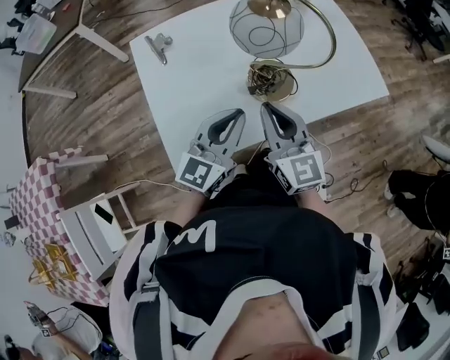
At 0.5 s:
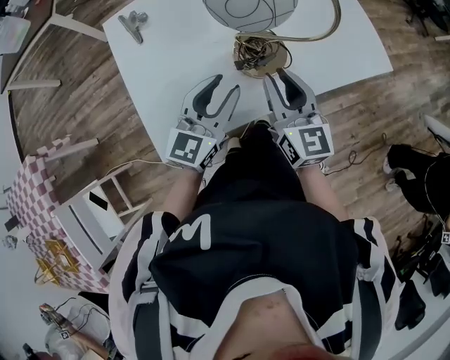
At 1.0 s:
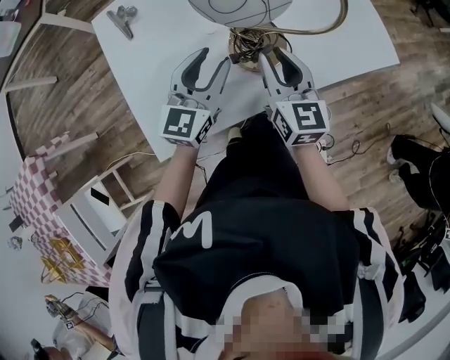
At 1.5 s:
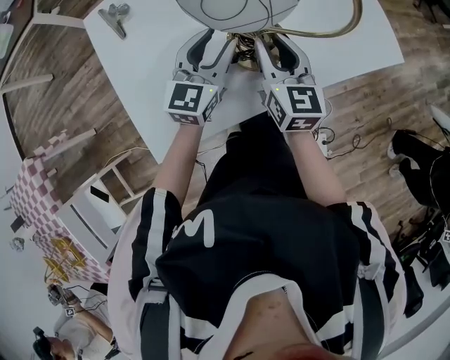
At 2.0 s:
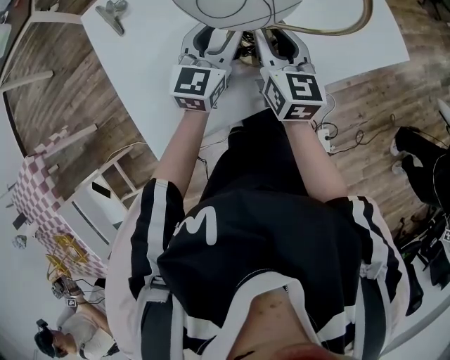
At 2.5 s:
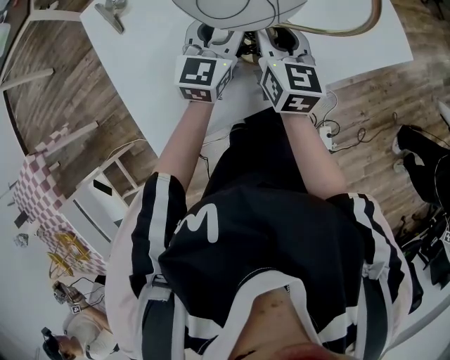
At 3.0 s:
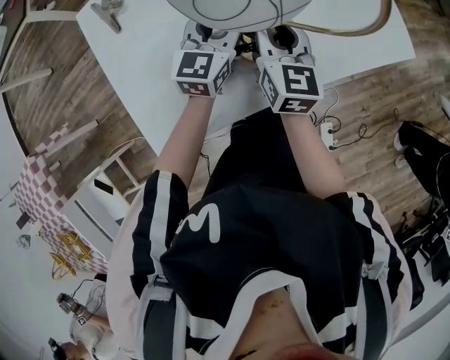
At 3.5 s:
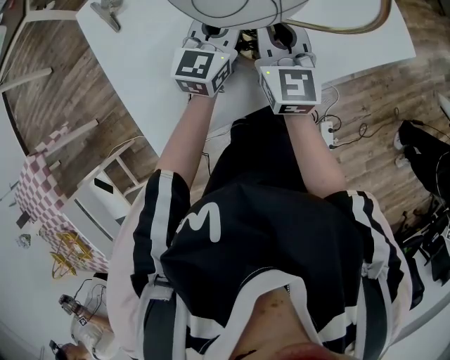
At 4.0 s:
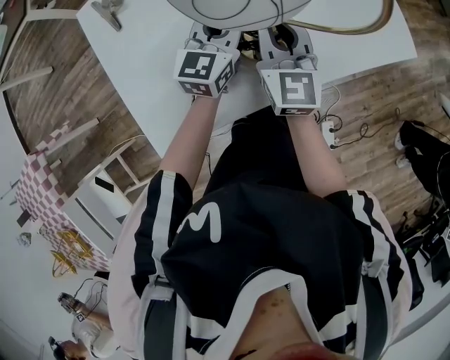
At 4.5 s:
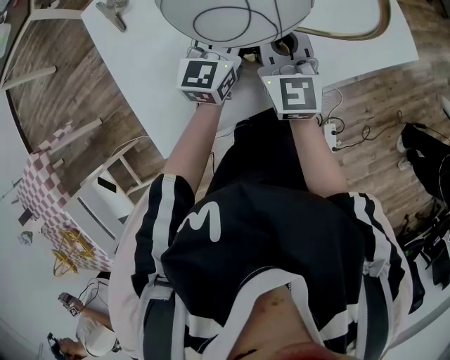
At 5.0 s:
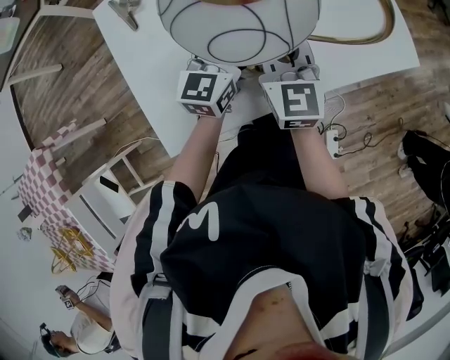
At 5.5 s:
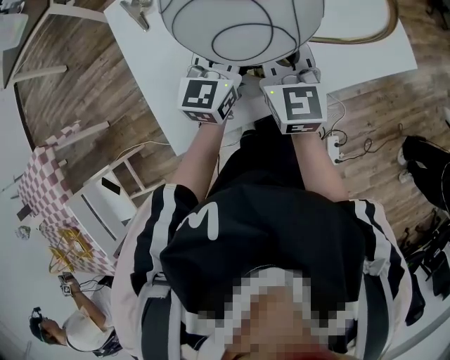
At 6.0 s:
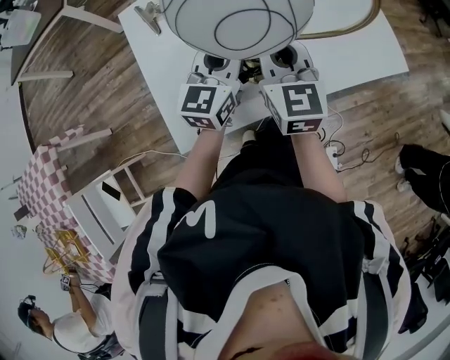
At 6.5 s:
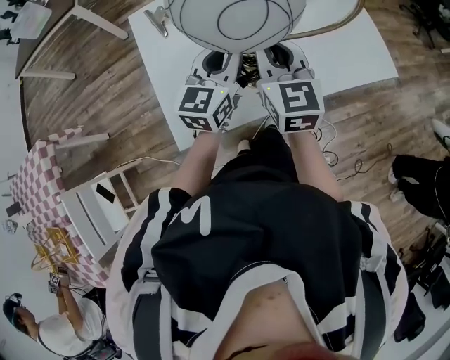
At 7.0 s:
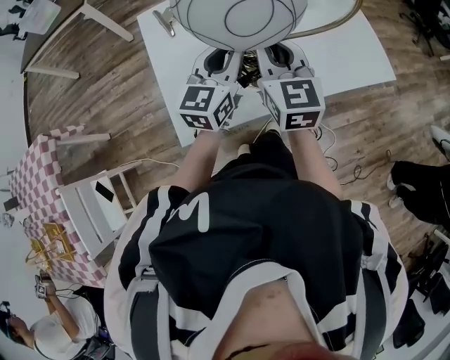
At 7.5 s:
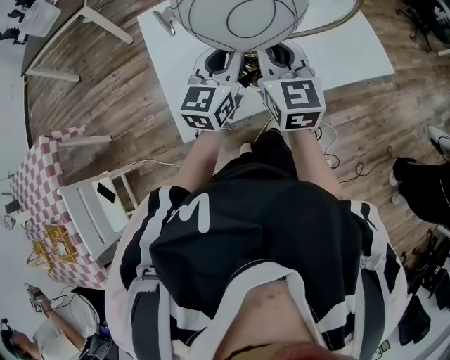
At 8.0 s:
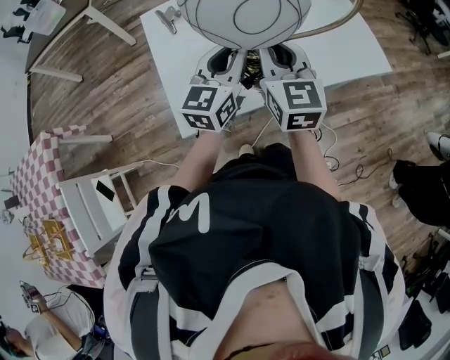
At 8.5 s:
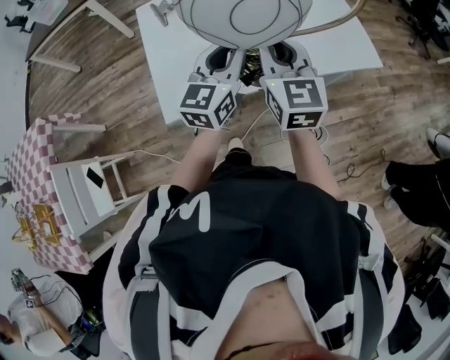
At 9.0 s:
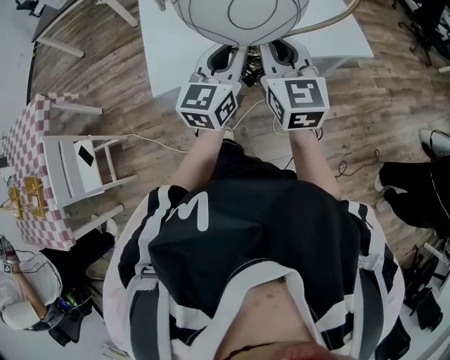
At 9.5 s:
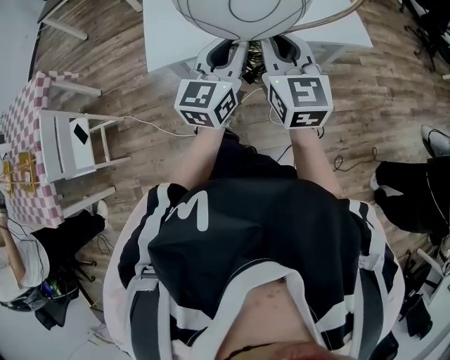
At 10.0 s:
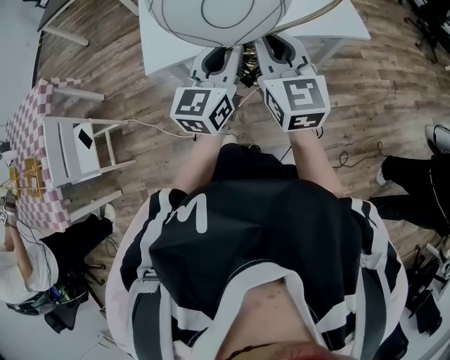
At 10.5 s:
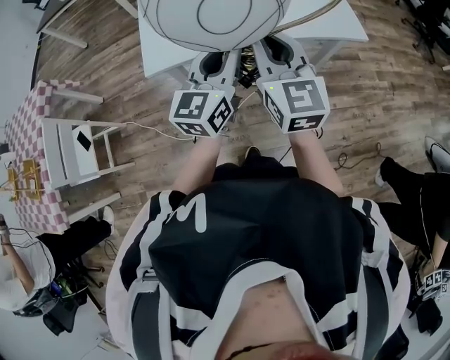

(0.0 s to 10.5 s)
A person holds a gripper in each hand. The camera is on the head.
0.0 s - 2.0 s: The two grippers go some 20 cm forward and downward. The right gripper swivels roughly 20 degrees, while the left gripper opens up.
2.0 s - 4.0 s: The left gripper closes its fingers.
4.0 s - 6.5 s: Both grippers move upward, backward and to the left, about 15 cm.
6.5 s - 8.5 s: The grippers both shift backward by roughly 10 cm.
8.5 s - 10.5 s: Both grippers move backward and to the right, approximately 15 cm.

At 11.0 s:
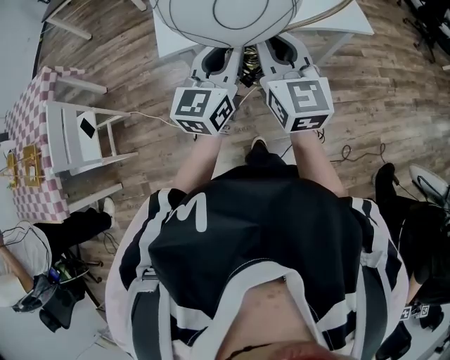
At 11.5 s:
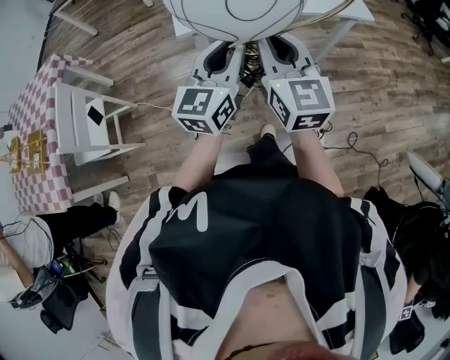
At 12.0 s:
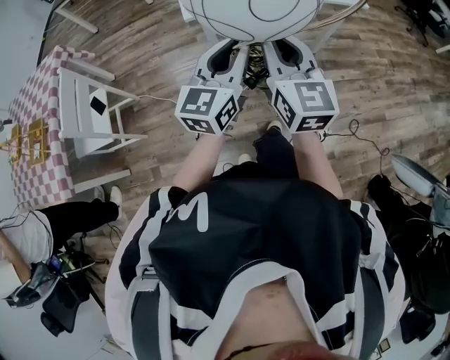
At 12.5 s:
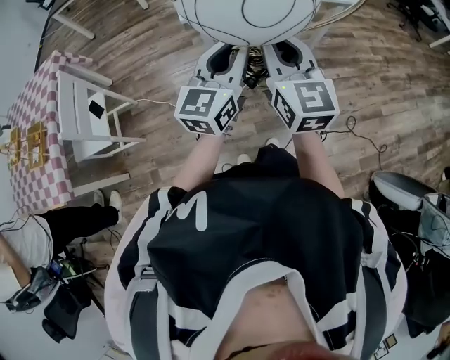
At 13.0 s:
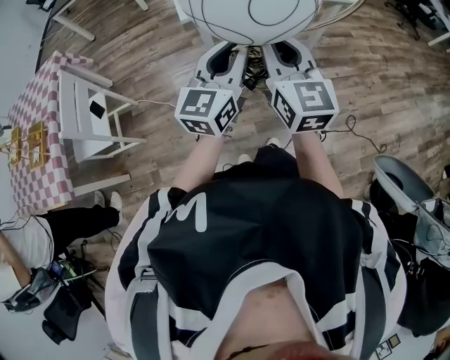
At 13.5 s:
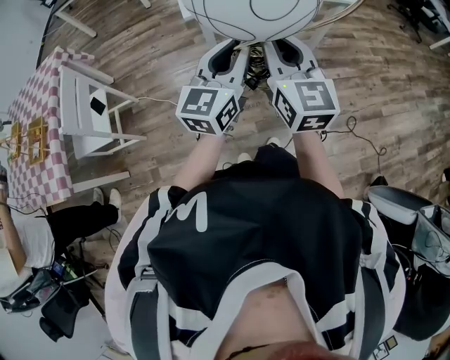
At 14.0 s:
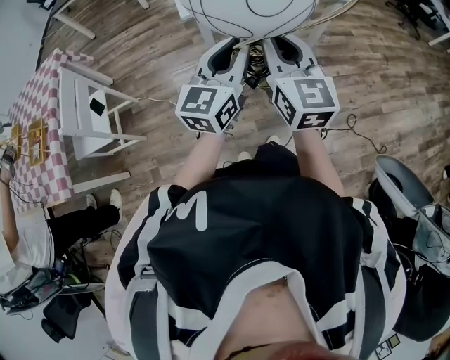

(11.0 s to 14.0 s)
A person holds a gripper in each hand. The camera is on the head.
11.0 s - 12.5 s: Both grippers move backward, some 20 cm.
12.5 s - 14.0 s: The grippers make only small movements.

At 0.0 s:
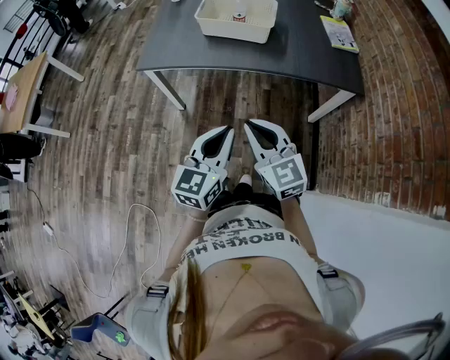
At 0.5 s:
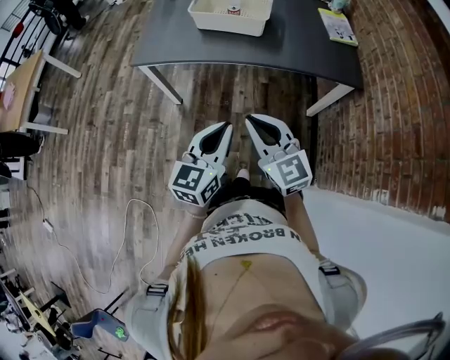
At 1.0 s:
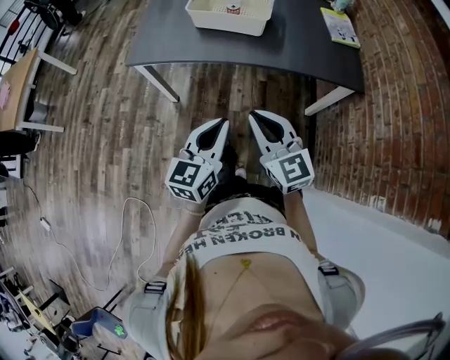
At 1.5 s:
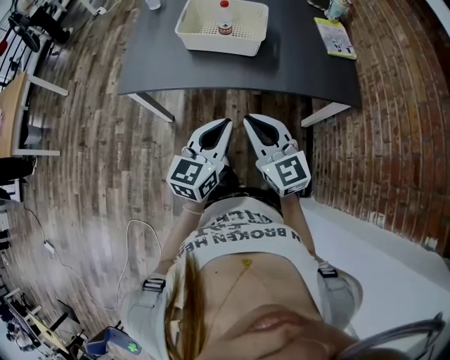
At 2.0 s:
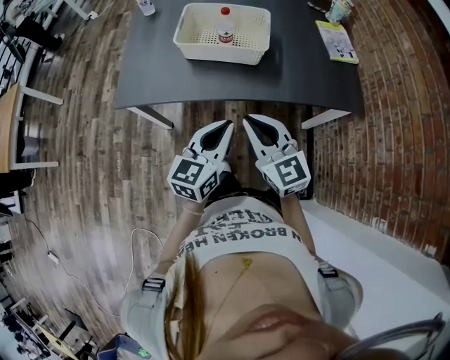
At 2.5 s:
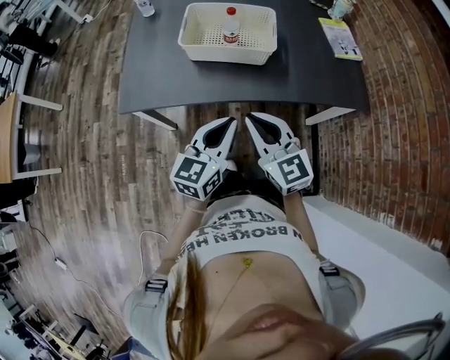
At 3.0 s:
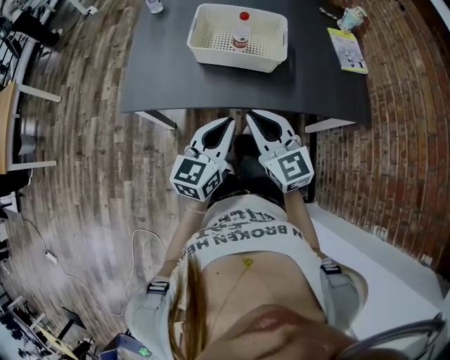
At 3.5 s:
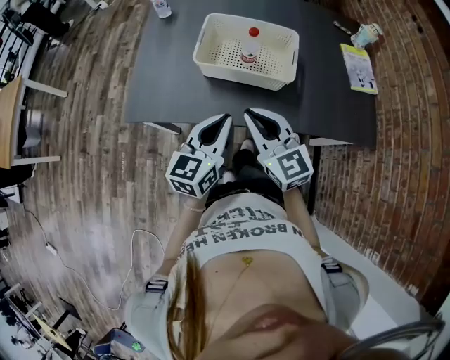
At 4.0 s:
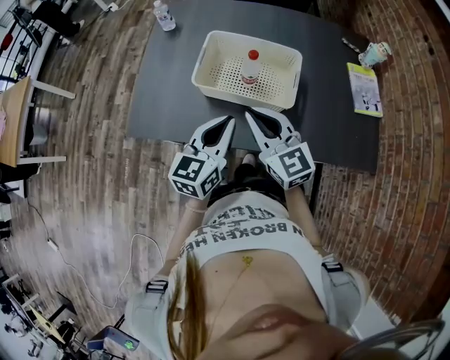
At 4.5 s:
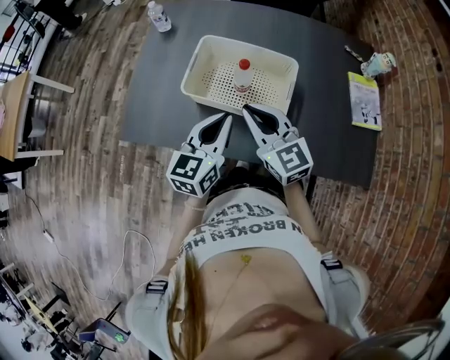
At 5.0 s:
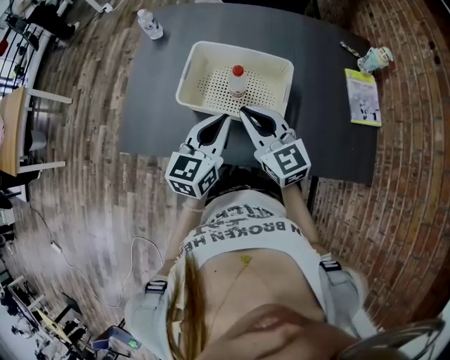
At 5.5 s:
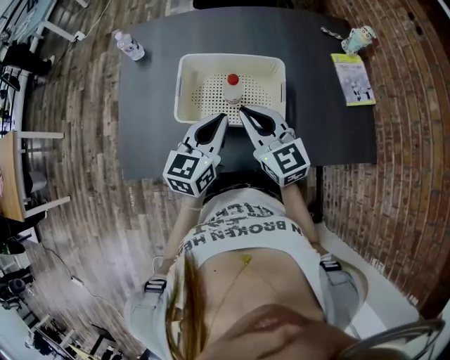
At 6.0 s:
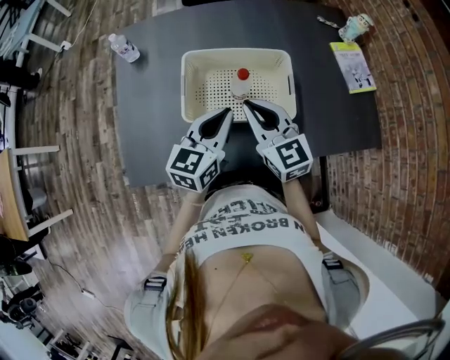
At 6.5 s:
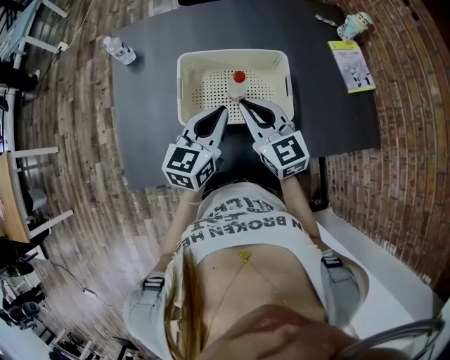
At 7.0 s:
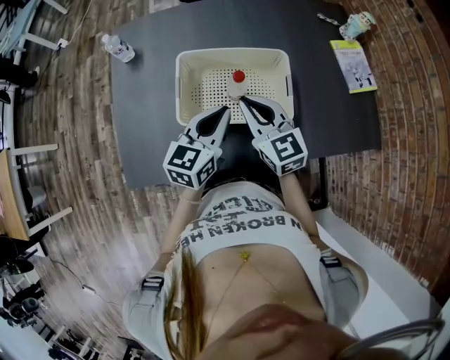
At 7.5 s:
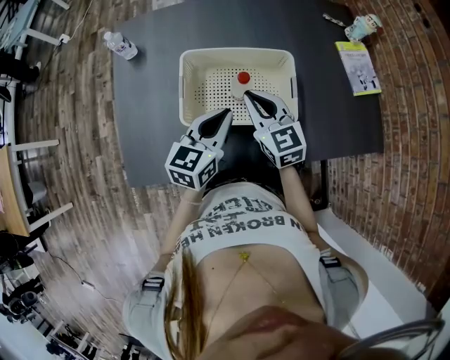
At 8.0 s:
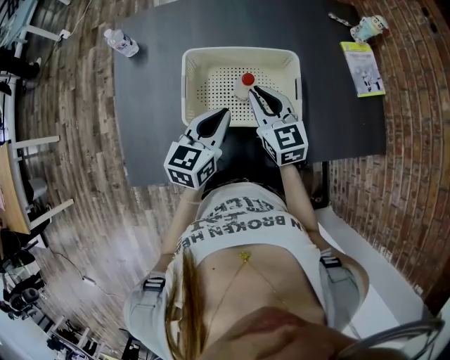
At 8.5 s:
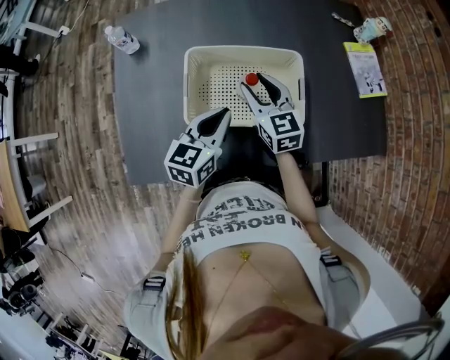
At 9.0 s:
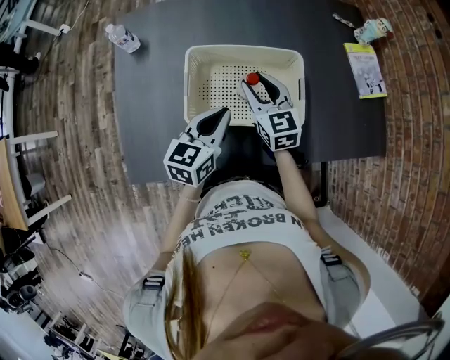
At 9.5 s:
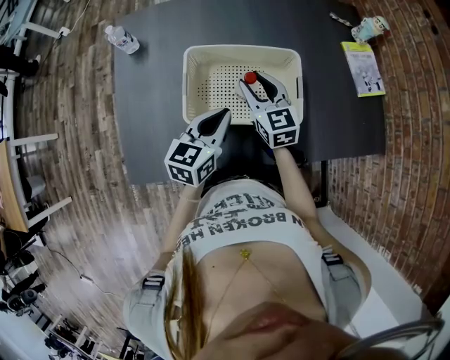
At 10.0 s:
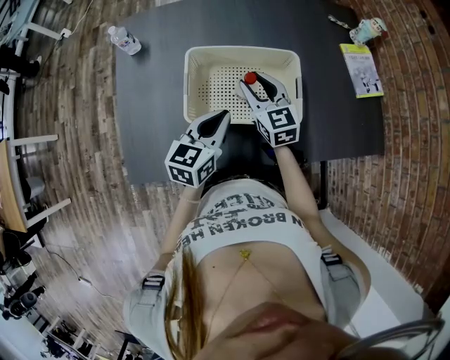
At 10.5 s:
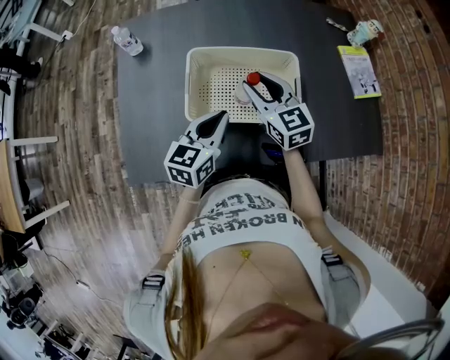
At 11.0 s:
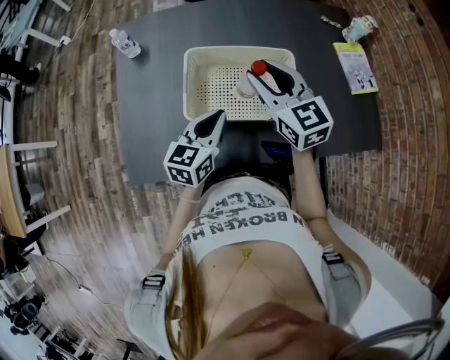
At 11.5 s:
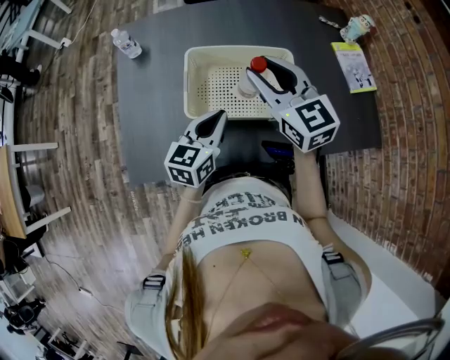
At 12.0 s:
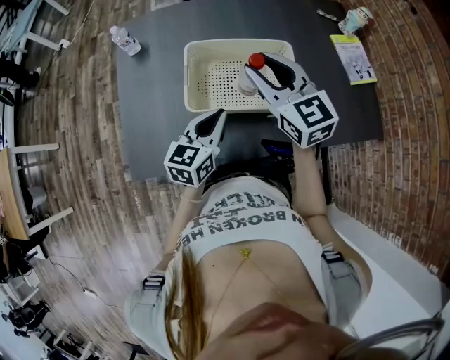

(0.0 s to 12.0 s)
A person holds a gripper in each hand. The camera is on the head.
0.0 s - 2.0 s: Both grippers move forward, roughly 25 cm.
2.0 s - 4.0 s: Both grippers move forward, approximately 25 cm.
4.0 s - 6.0 s: The two grippers go roughly 15 cm forward.
6.0 s - 8.0 s: The left gripper changes place by roughly 5 cm. The right gripper moves forward and downward, about 10 cm.
8.0 s - 10.0 s: The right gripper opens.
10.0 s - 12.0 s: The right gripper goes approximately 15 cm upward and backward. Meanwhile the left gripper ends up about 5 cm from where it was.

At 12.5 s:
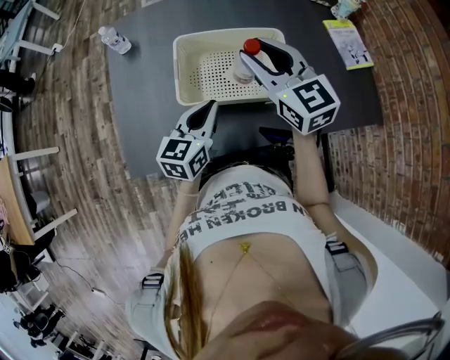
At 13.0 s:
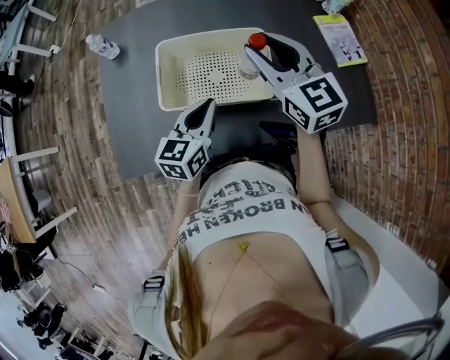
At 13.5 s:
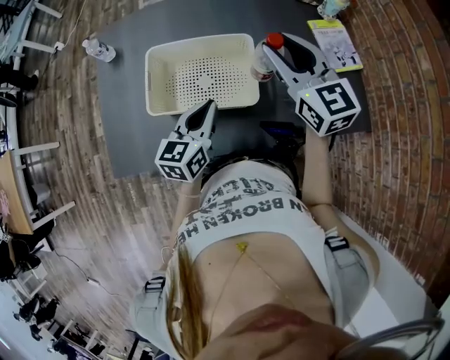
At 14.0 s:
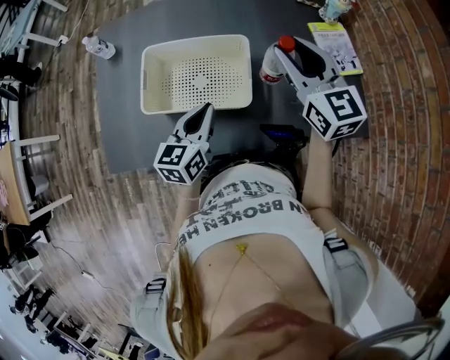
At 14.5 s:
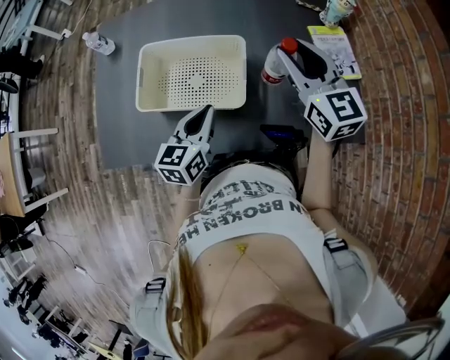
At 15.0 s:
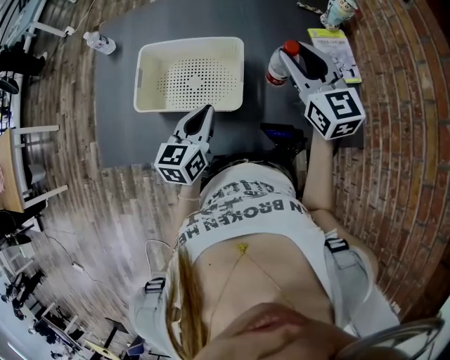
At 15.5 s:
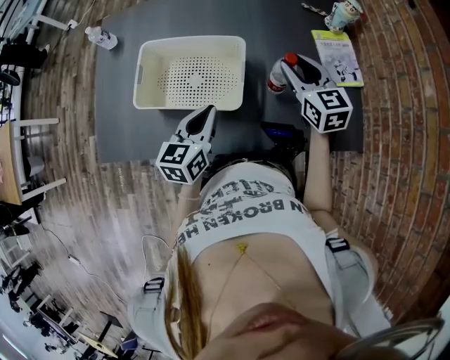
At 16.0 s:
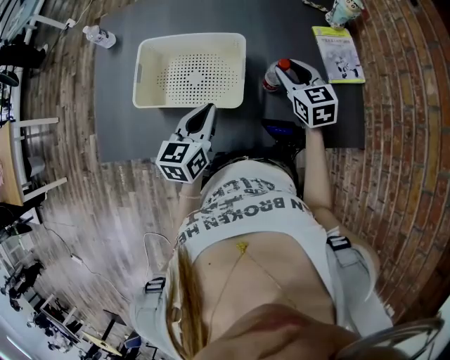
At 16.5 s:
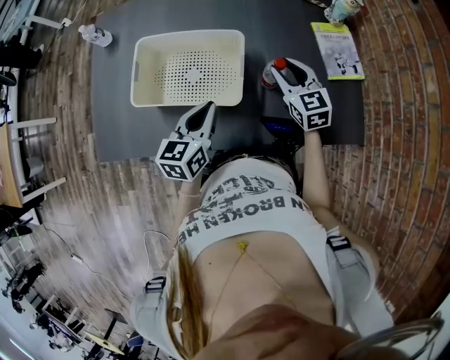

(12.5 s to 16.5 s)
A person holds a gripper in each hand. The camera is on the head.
12.5 s - 14.5 s: The two grippers go roughly 20 cm to the right.
14.5 s - 16.5 s: The right gripper shifts approximately 15 cm downward.
